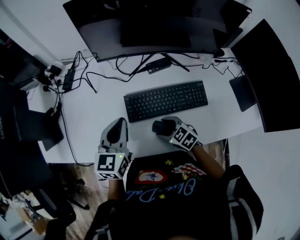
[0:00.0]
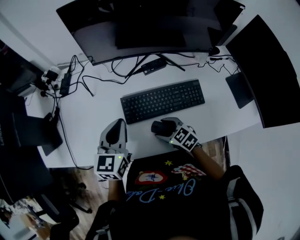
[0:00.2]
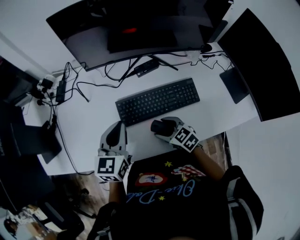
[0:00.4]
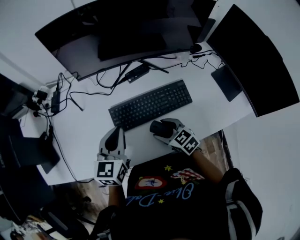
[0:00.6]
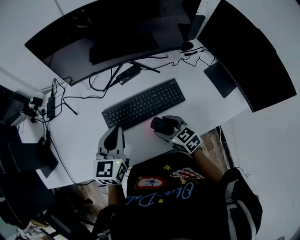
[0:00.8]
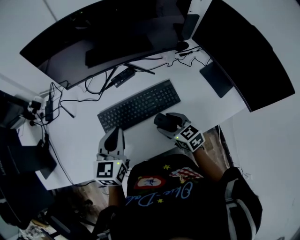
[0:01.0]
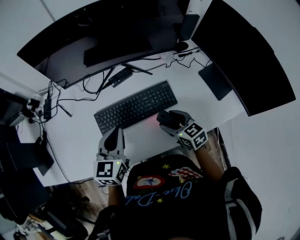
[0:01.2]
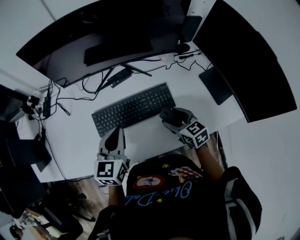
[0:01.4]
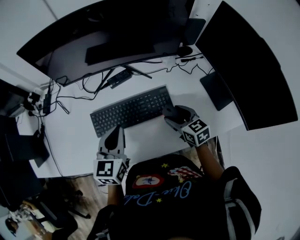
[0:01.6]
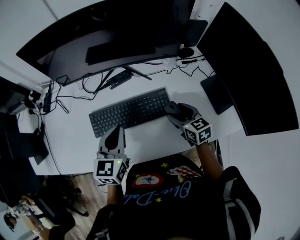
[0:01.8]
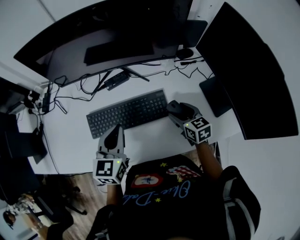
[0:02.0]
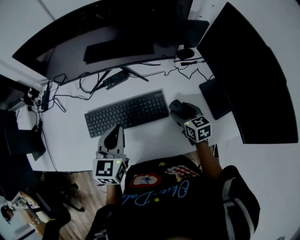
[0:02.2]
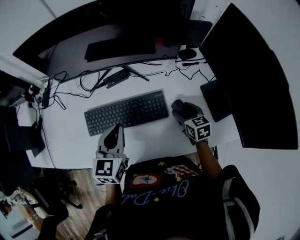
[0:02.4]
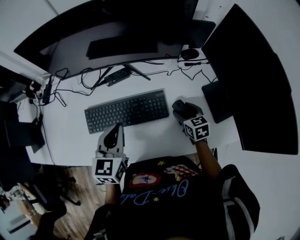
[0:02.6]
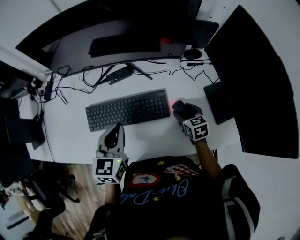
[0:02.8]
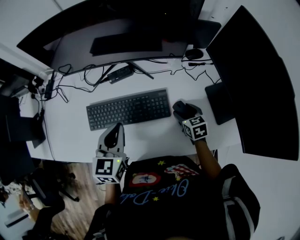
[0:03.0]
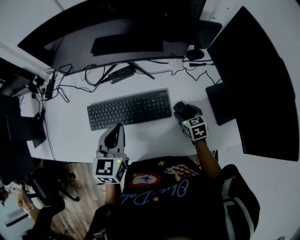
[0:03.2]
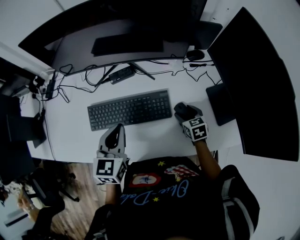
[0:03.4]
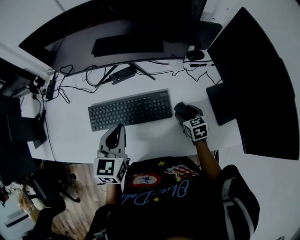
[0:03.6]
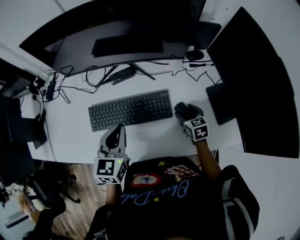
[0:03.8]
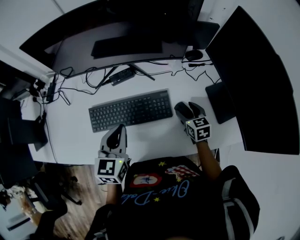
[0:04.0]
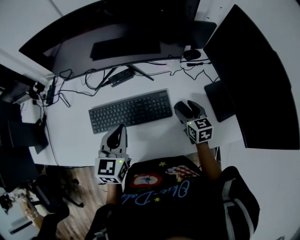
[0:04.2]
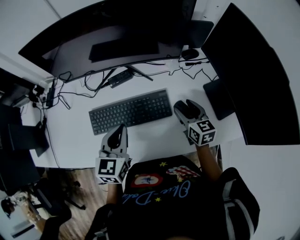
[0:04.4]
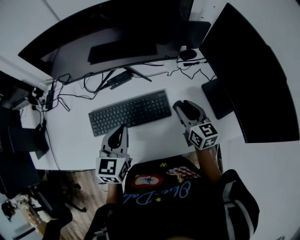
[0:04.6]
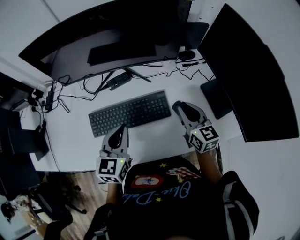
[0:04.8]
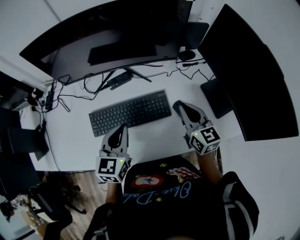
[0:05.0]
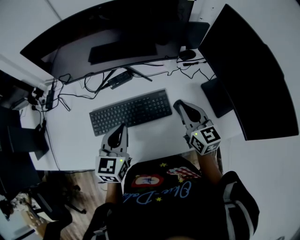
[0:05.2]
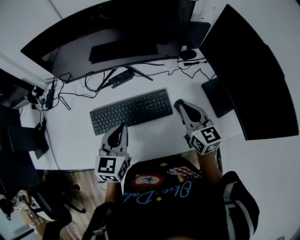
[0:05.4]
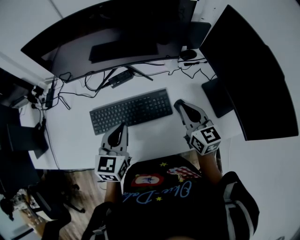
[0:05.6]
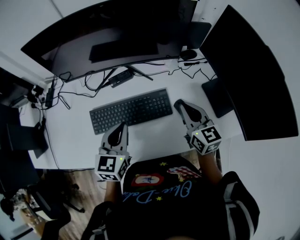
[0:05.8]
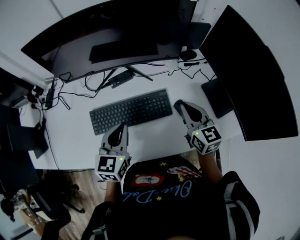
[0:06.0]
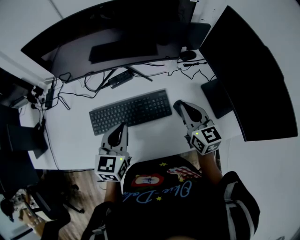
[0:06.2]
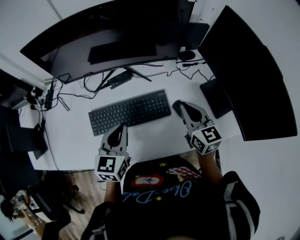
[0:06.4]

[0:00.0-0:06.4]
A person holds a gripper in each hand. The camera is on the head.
0:00.0 to 0:01.6: The two grippers go some 20 cm to the right. The right gripper changes its angle by about 40 degrees.
0:01.6 to 0:03.2: The right gripper is displaced to the right and downward by roughly 15 cm.
0:03.2 to 0:04.8: The right gripper travels upward by about 15 cm, angles its fingers upward, by roughly 30 degrees, and closes.
0:04.8 to 0:06.4: The grippers move only a little.

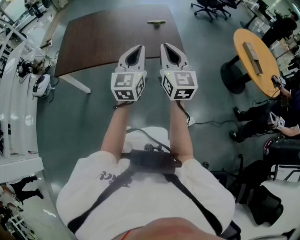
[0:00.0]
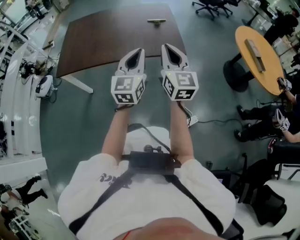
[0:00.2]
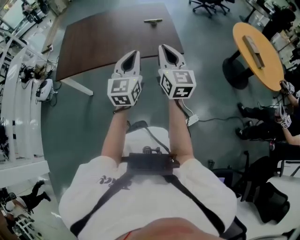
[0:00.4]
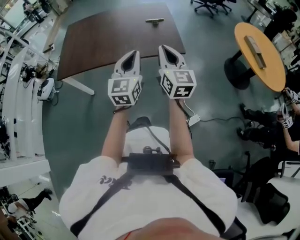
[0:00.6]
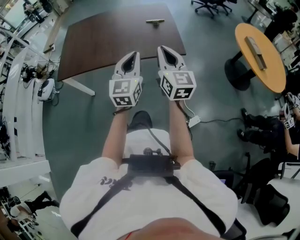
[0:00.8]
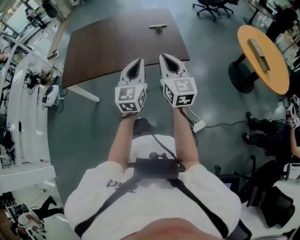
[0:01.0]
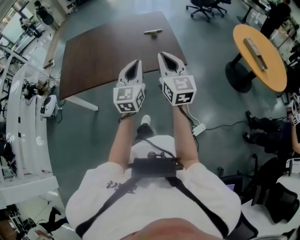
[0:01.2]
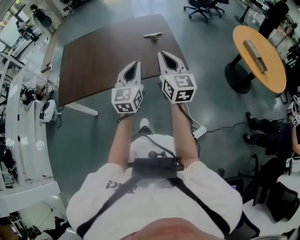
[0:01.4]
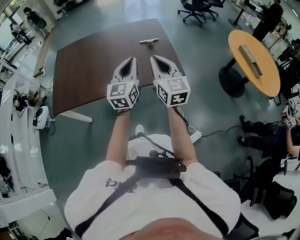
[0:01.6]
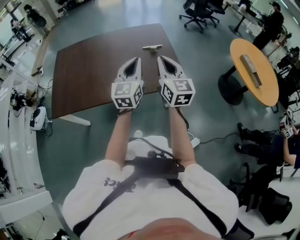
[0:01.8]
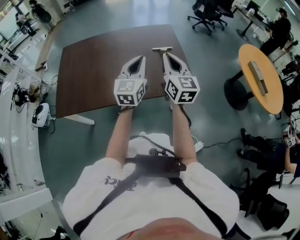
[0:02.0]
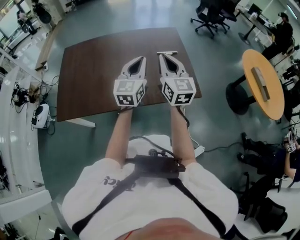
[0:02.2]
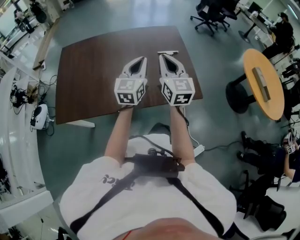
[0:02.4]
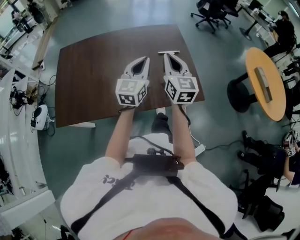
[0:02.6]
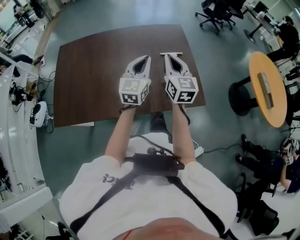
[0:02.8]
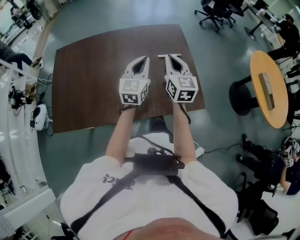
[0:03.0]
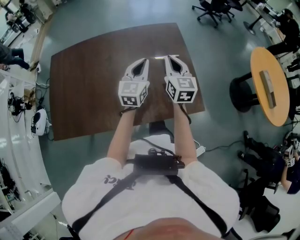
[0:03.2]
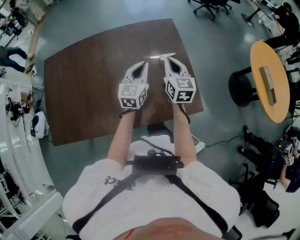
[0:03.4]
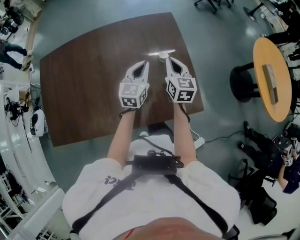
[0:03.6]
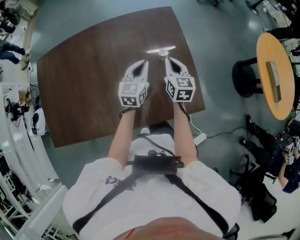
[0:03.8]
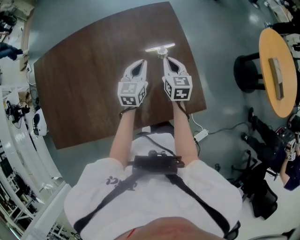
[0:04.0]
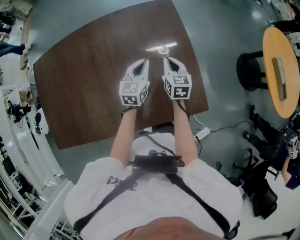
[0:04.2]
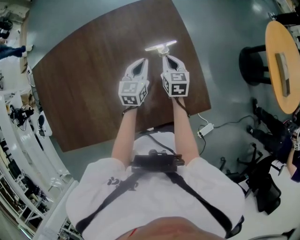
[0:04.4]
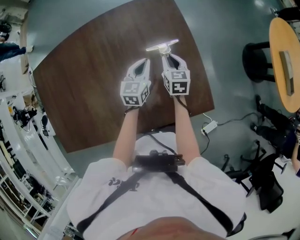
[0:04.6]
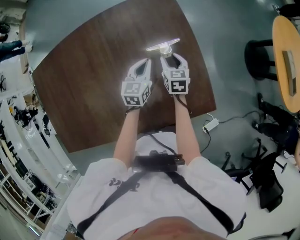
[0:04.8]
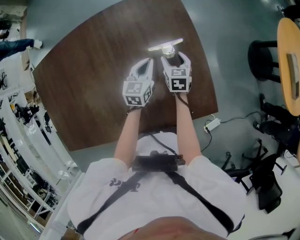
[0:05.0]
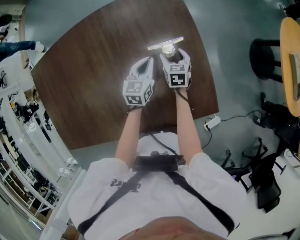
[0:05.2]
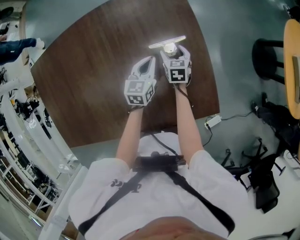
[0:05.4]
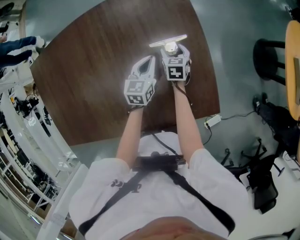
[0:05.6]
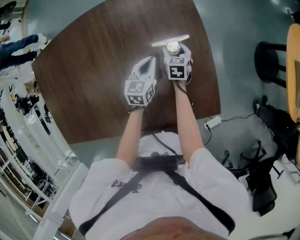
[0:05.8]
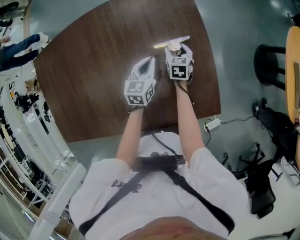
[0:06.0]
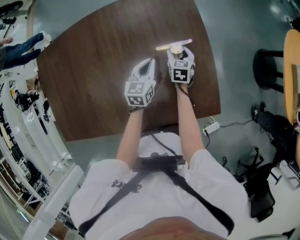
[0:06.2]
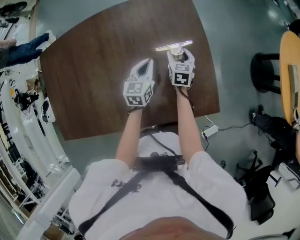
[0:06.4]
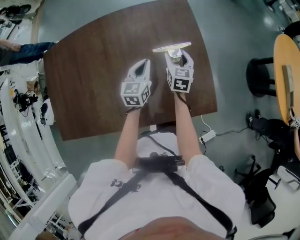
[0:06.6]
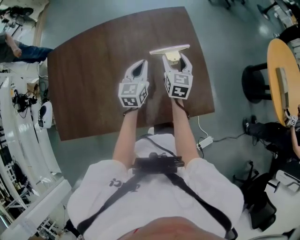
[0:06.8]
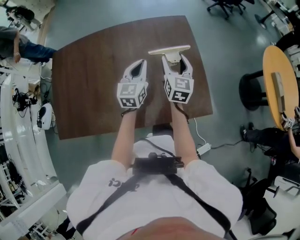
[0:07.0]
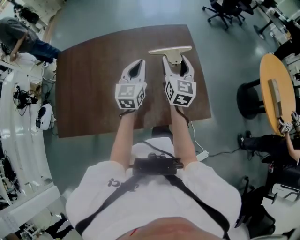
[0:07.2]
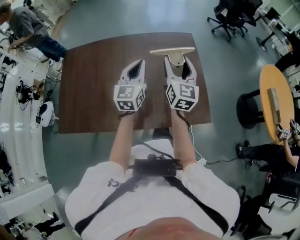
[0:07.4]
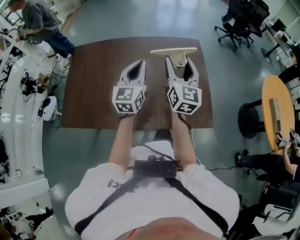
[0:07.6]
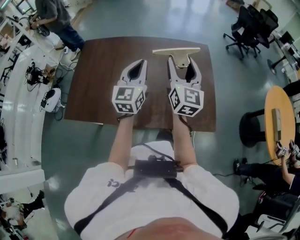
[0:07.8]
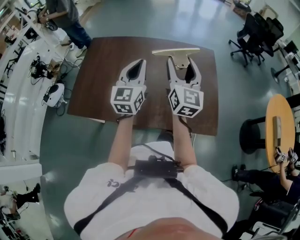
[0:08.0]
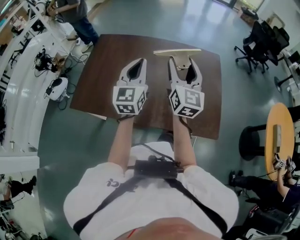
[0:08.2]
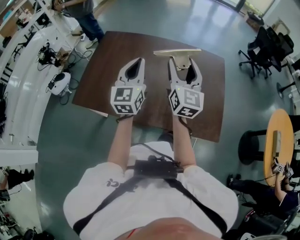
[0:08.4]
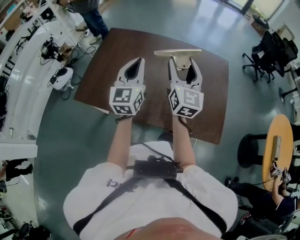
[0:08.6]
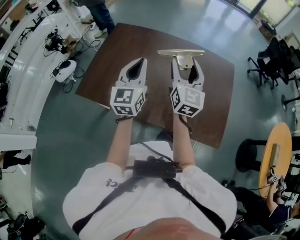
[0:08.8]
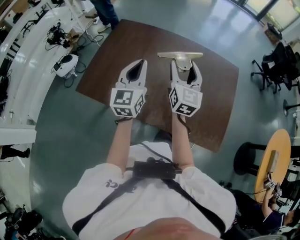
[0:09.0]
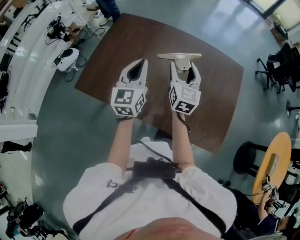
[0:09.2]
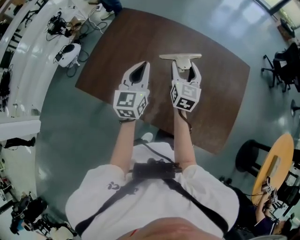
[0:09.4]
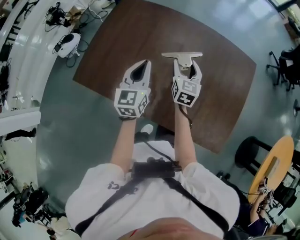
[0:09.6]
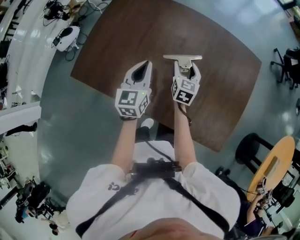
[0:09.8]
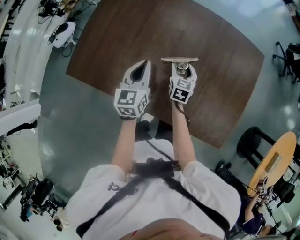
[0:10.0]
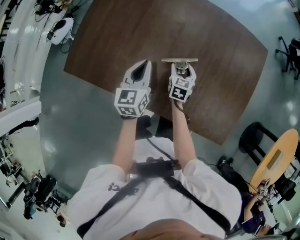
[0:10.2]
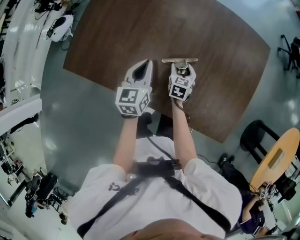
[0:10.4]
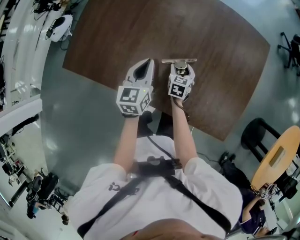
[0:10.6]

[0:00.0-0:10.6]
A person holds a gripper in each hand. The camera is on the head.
0:00.0 to 0:01.6: Both grippers travel together forward, approximately 15 cm.
0:01.6 to 0:03.0: Both grippers move forward, roughly 30 cm.
0:03.0 to 0:04.6: Both grippers travel together downward and forward, approximately 30 cm. The right gripper rotates some 30 degrees. The left gripper changes its angle by some 20 degrees.
0:04.6 to 0:06.0: The left gripper changes place by about 5 cm. The right gripper travels downward by roughly 10 cm, and opens.
0:06.0 to 0:07.6: The right gripper moves upward and backward, approximately 50 cm, and tips its fingers upward by roughly 50 degrees; the left gripper is displaced upward, backward and to the left by some 40 cm, and tips its fingers upward by approximately 30 degrees.
0:07.6 to 0:09.0: The two grippers go some 20 cm to the left. The left gripper turns by about 20 degrees.
0:09.0 to 0:10.6: The right gripper goes approximately 40 cm downward, and tips its fingers downward by approximately 50 degrees. Meanwhile the left gripper shifts approximately 25 cm downward, and changes its angle by roughly 30 degrees.

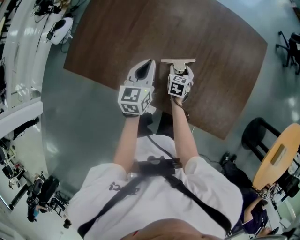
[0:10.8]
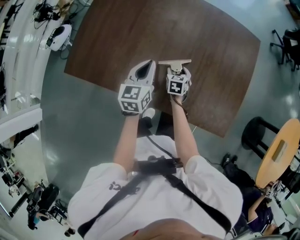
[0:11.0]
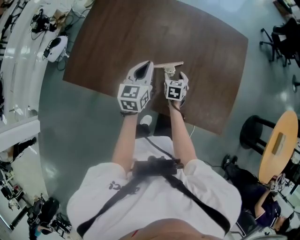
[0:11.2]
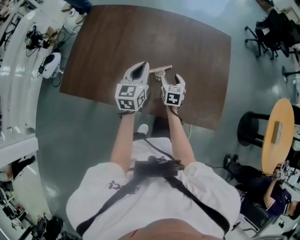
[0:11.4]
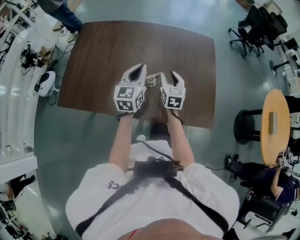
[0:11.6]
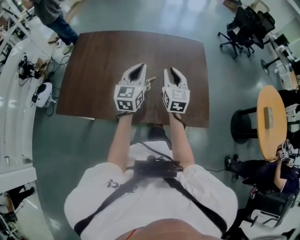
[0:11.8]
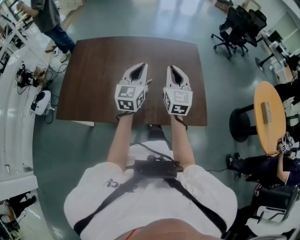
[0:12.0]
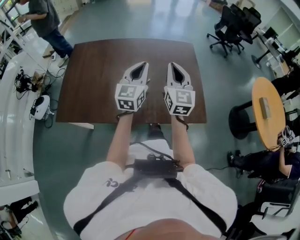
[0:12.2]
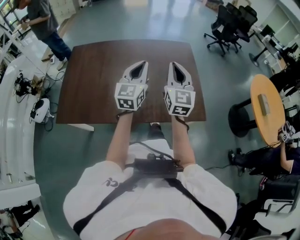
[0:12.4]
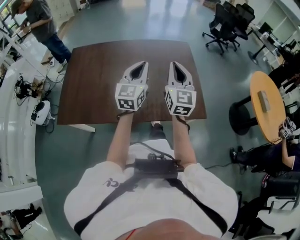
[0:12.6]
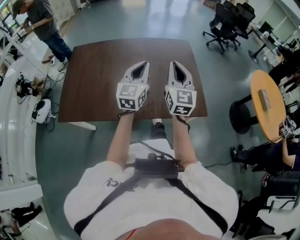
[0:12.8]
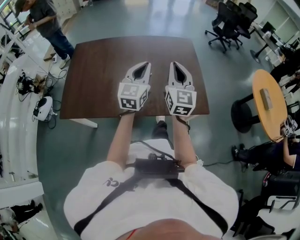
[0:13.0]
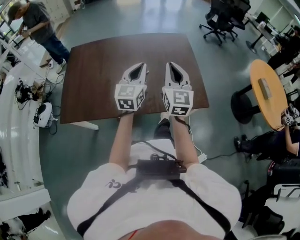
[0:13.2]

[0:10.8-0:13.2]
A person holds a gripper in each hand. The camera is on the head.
0:10.8 to 0:12.0: The left gripper moves upward and to the right, roughly 25 cm, and swivels roughly 30 degrees. Meanwhile the right gripper is displaced upward by some 40 cm, tips its fingers upward by some 50 degrees, and closes its fingers.
0:12.0 to 0:13.2: Both grippers move backward, approximately 10 cm.

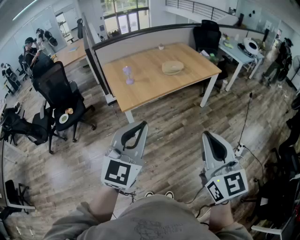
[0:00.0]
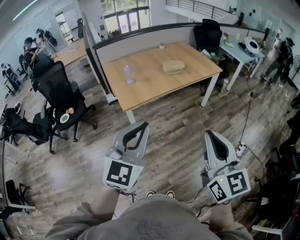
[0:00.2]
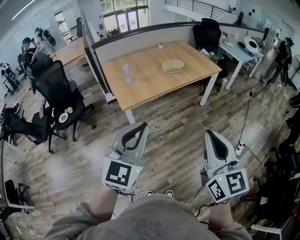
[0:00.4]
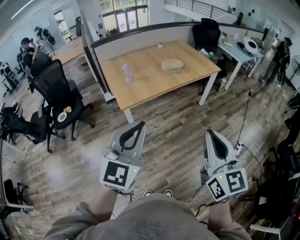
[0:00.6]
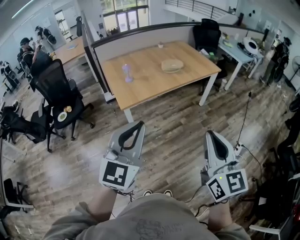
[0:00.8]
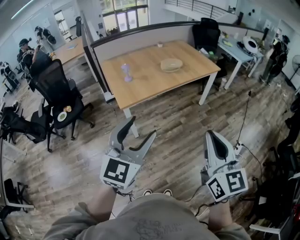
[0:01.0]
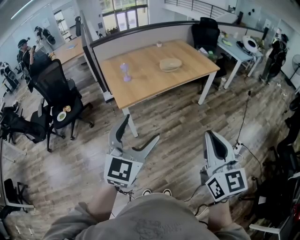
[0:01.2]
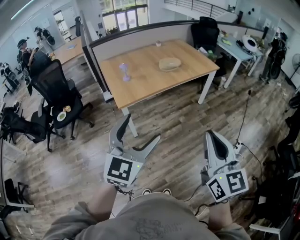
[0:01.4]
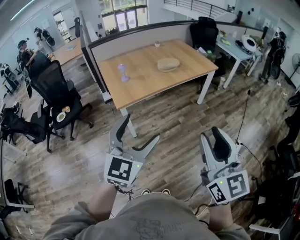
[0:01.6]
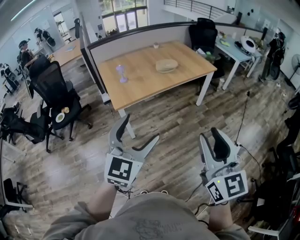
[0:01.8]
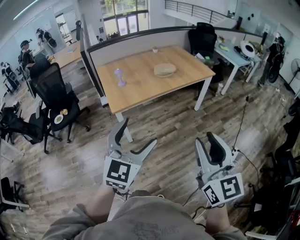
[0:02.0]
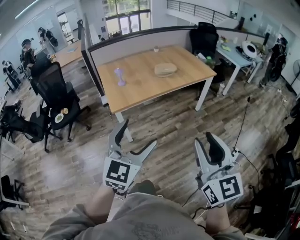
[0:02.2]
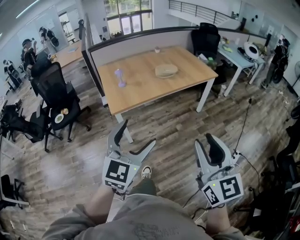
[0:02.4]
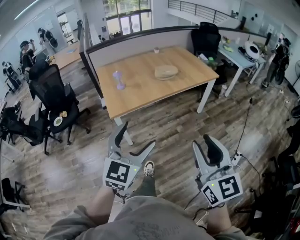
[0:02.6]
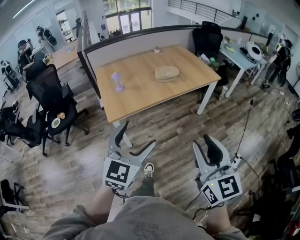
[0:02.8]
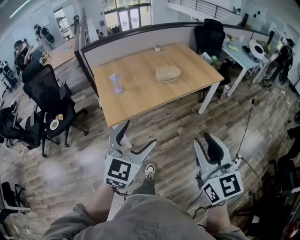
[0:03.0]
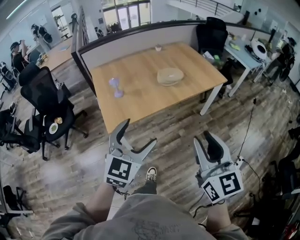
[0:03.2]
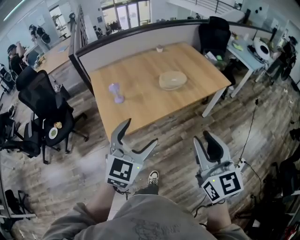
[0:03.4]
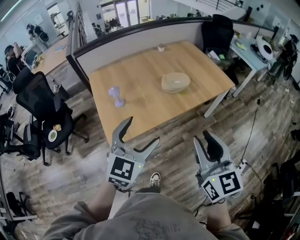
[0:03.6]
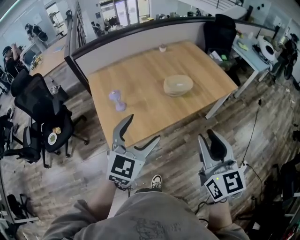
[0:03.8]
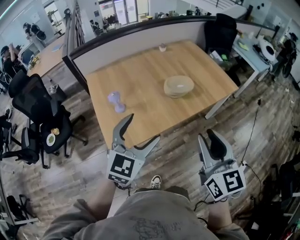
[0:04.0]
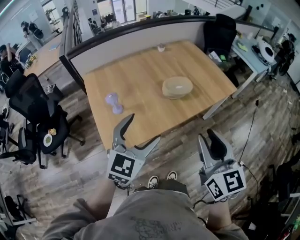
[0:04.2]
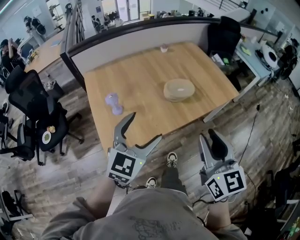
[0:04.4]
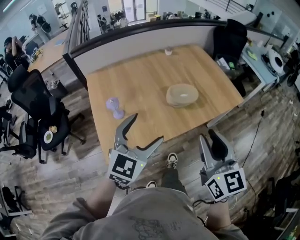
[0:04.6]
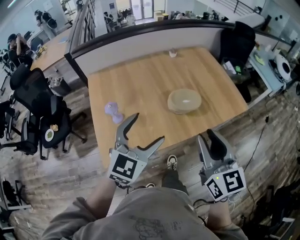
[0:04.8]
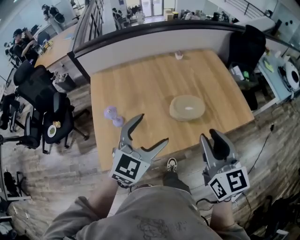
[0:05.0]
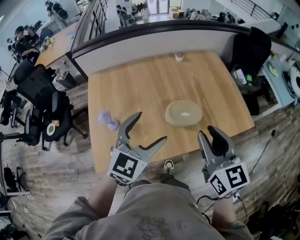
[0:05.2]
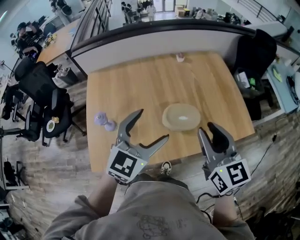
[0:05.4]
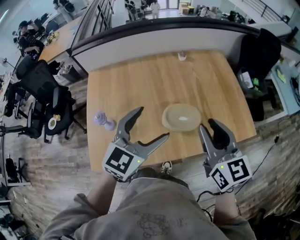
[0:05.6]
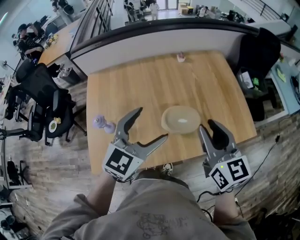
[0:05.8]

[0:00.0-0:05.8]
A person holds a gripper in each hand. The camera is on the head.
0:00.0 to 0:01.4: The left gripper opens its fingers.
0:01.4 to 0:02.8: Both grippers move forward, some 15 cm. The right gripper opens.
0:02.8 to 0:04.4: The two grippers go some 40 cm forward.
0:04.4 to 0:05.8: The left gripper heads forward and to the right, covering roughly 30 cm. The right gripper shifts roughly 30 cm forward, and turns by roughly 20 degrees.
